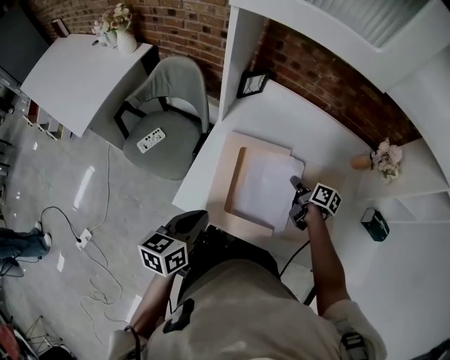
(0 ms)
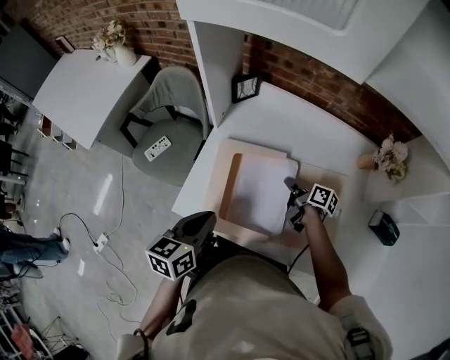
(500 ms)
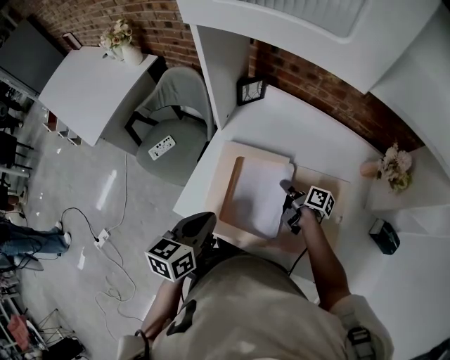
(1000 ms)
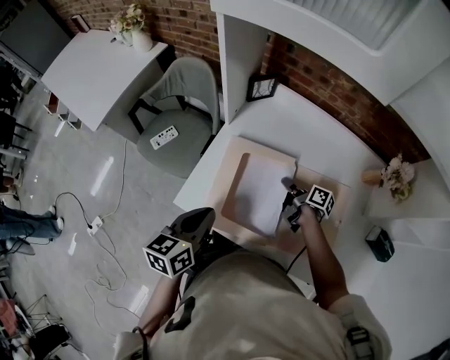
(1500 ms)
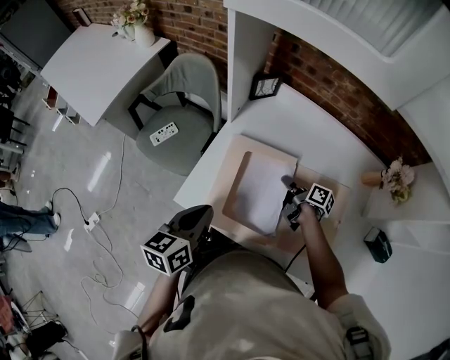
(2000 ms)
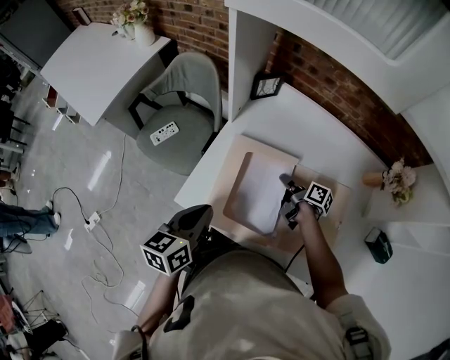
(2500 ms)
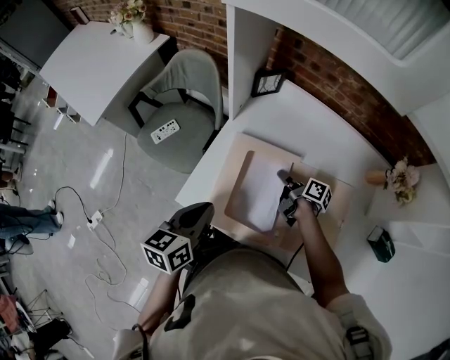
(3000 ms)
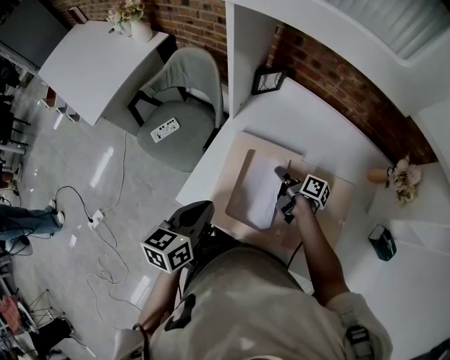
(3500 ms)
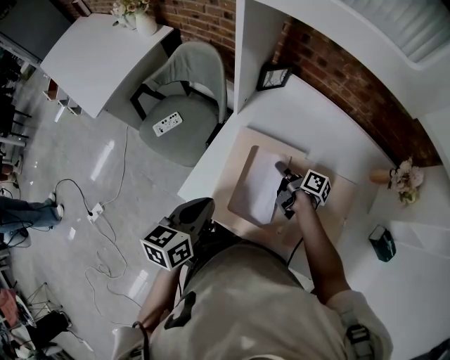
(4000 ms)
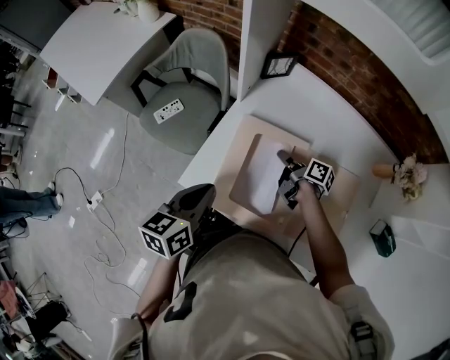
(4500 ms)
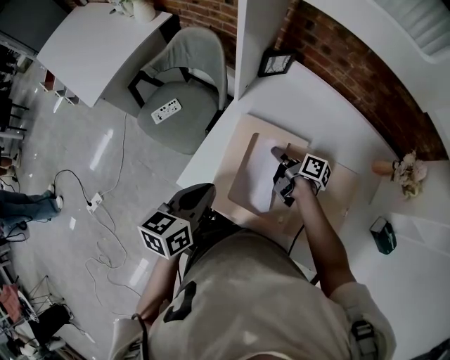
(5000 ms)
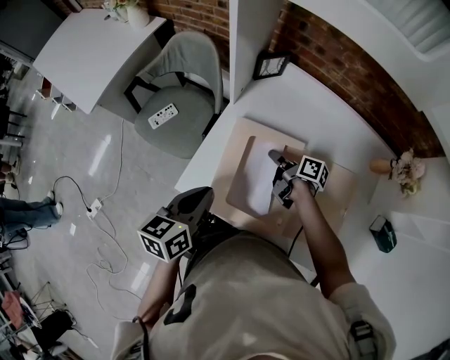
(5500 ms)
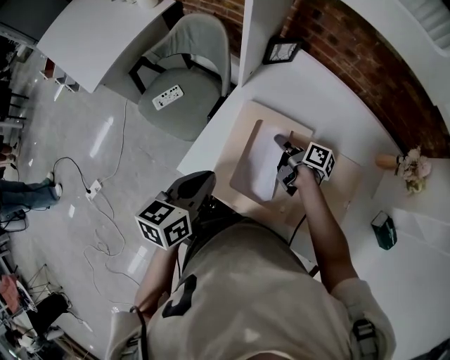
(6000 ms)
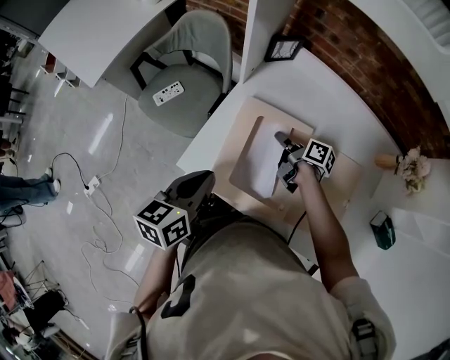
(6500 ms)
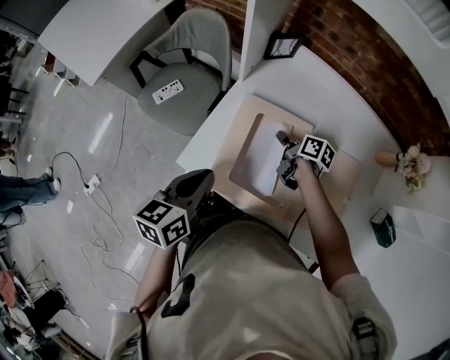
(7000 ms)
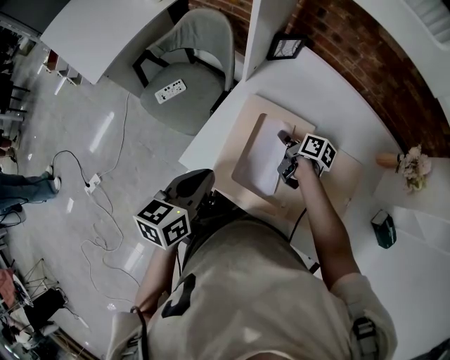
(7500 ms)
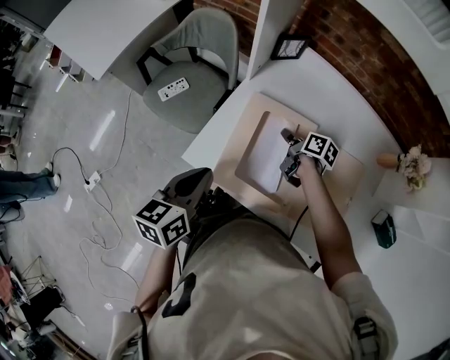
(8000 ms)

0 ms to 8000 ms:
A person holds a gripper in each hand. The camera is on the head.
0 ms to 2000 ms: The right gripper heads to the left, covering roughly 5 cm.
2000 ms to 4000 ms: The right gripper moves roughly 5 cm.
4000 ms to 8000 ms: The grippers move only a little.

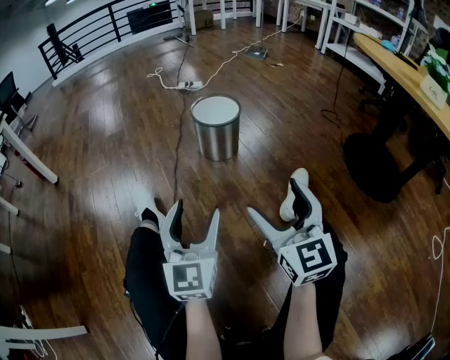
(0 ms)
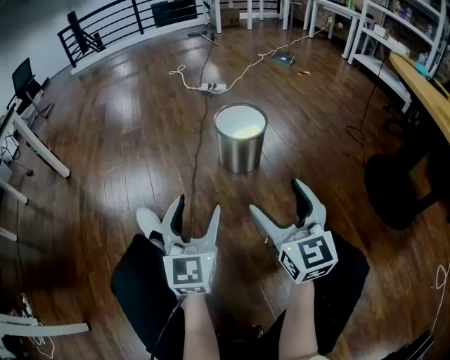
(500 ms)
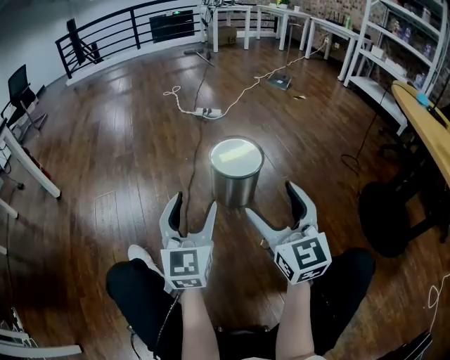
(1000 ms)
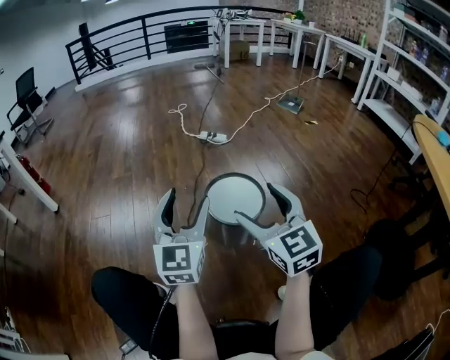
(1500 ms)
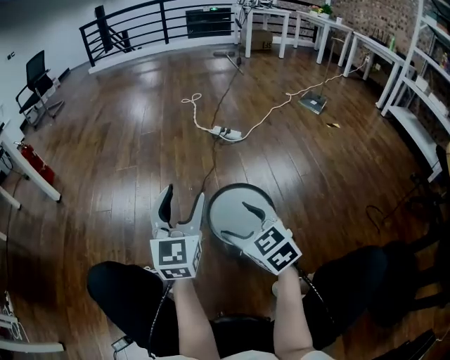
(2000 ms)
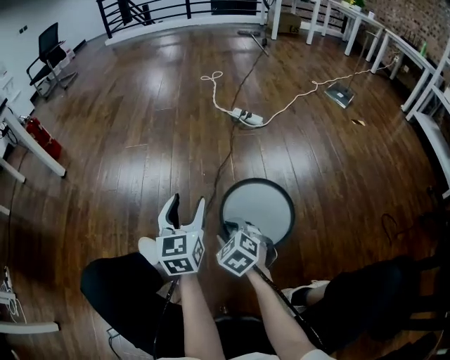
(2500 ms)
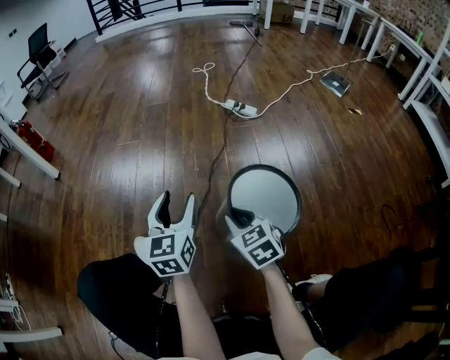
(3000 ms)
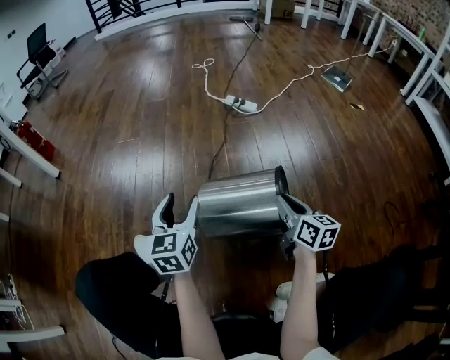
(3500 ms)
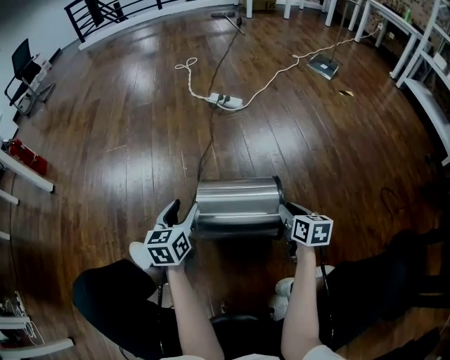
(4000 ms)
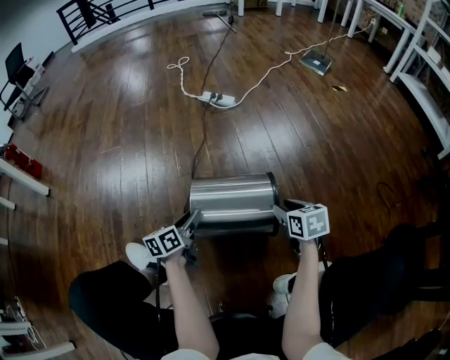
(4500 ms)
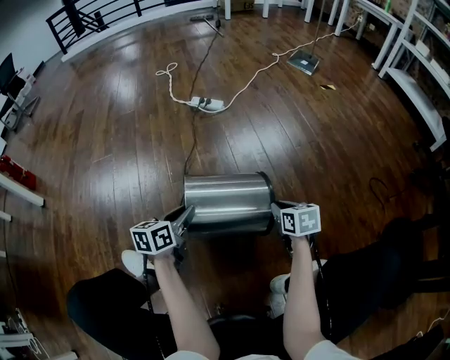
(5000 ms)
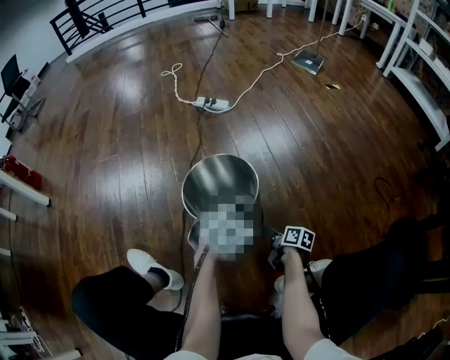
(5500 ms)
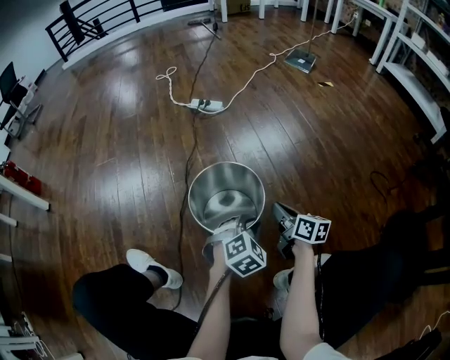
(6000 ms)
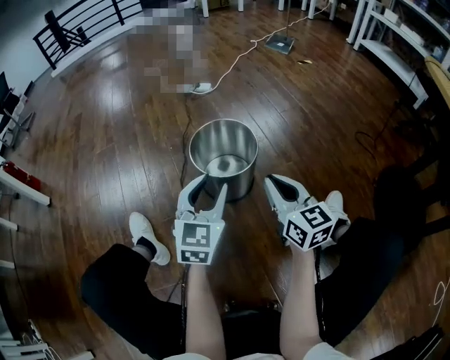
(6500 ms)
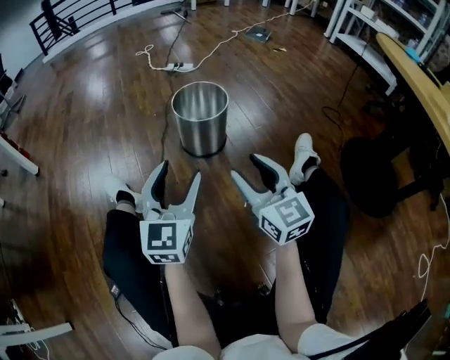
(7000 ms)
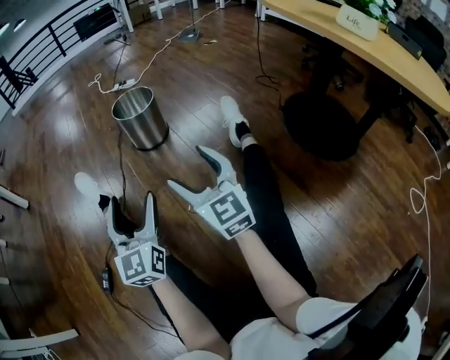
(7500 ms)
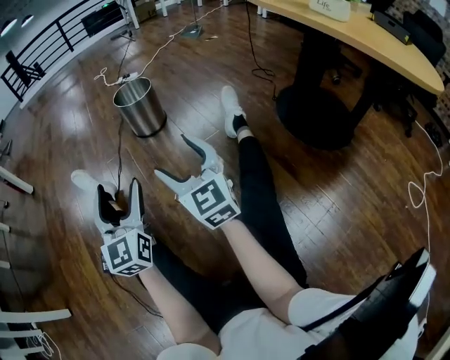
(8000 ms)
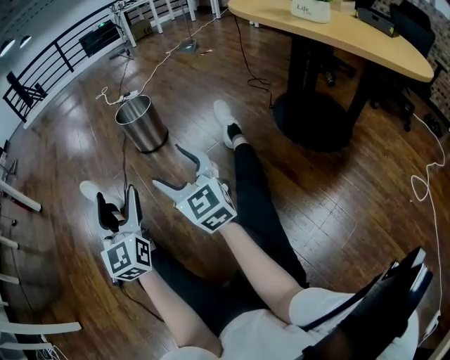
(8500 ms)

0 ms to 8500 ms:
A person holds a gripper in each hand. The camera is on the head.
0 ms to 2000 ms: Both grippers are carried approximately 50 cm. The right gripper turns by roughly 50 degrees.
2000 ms to 4000 ms: The left gripper goes roughly 20 cm downward, and rotates roughly 30 degrees, while the right gripper moves to the right and downward, some 30 cm, rotates around the line of its fingers by some 50 degrees, clockwise from behind, and closes.
4000 ms to 6500 ms: The left gripper is displaced backward, to the right and upward by roughly 20 cm, and changes its angle by about 40 degrees; the right gripper heads backward and upward, covering some 25 cm, and turns by about 30 degrees.
6500 ms to 8500 ms: Both grippers are carried backward, approximately 50 cm. The left gripper rotates some 30 degrees, and opens up, while the right gripper rotates roughly 30 degrees, and opens.

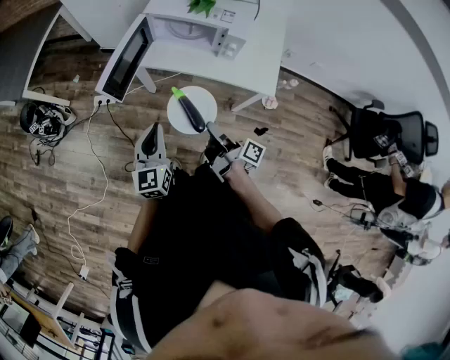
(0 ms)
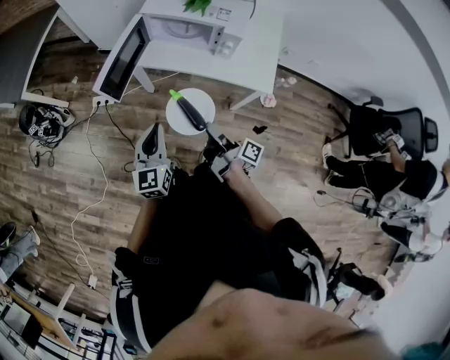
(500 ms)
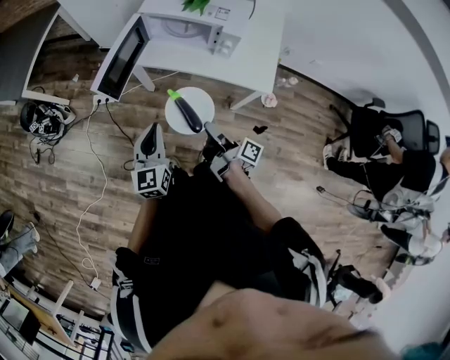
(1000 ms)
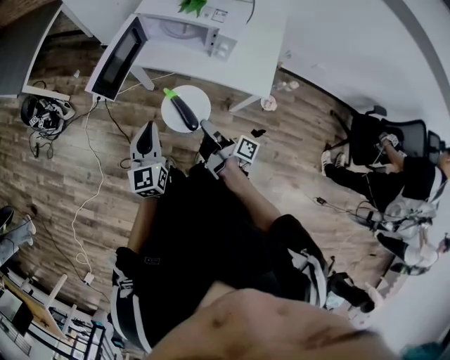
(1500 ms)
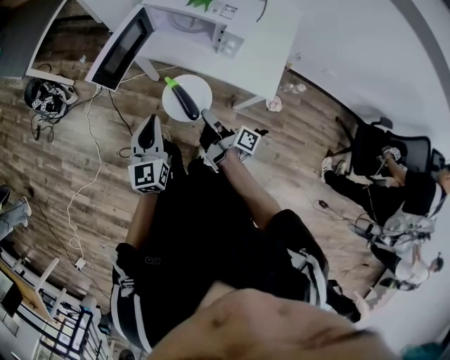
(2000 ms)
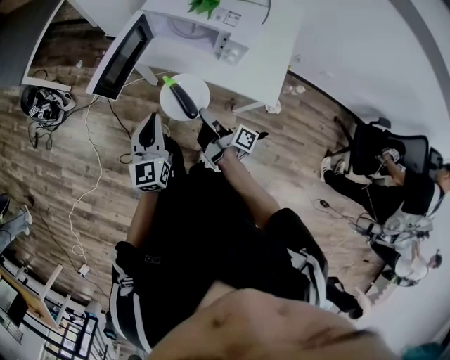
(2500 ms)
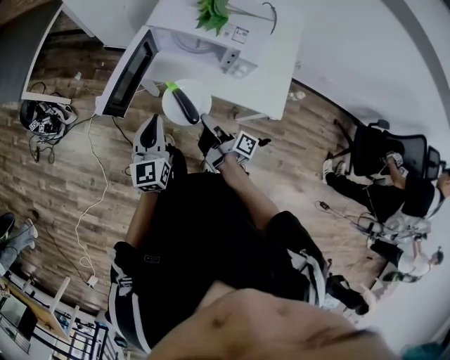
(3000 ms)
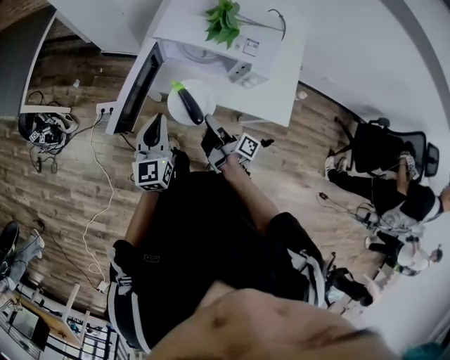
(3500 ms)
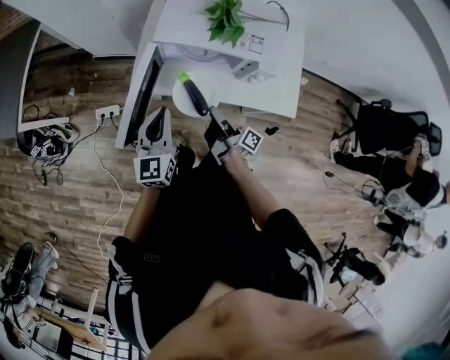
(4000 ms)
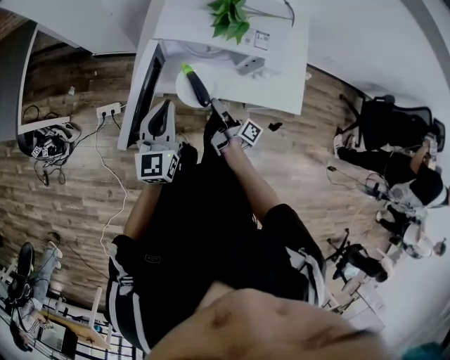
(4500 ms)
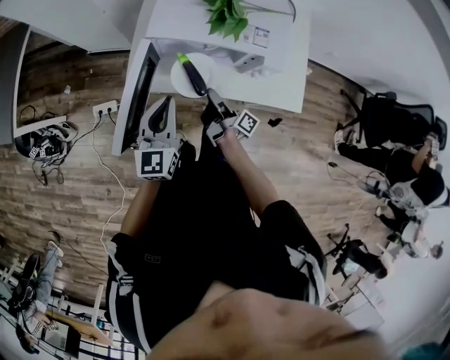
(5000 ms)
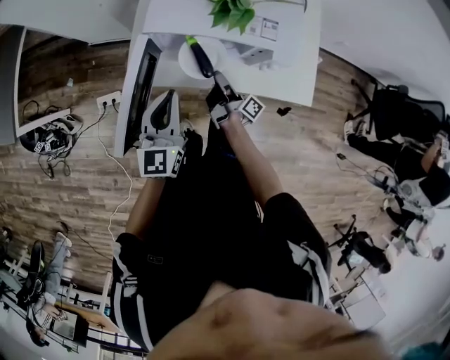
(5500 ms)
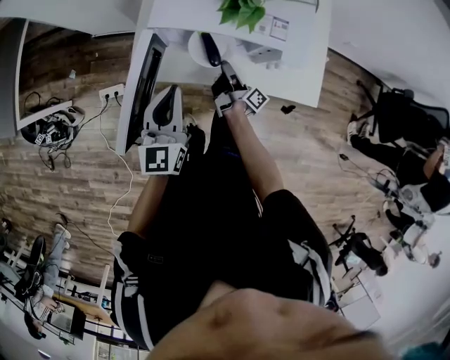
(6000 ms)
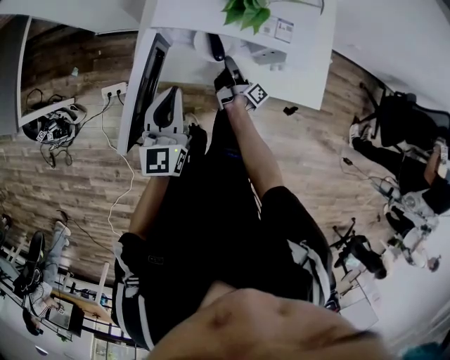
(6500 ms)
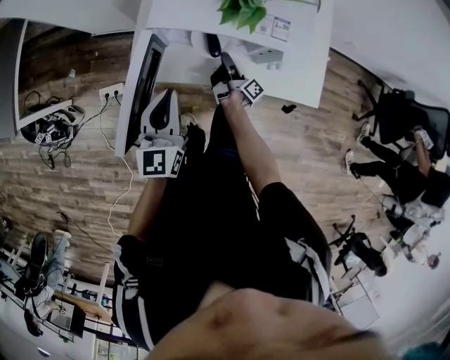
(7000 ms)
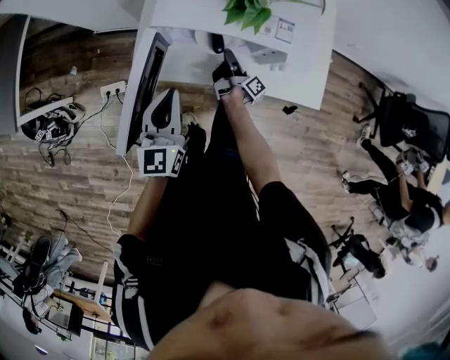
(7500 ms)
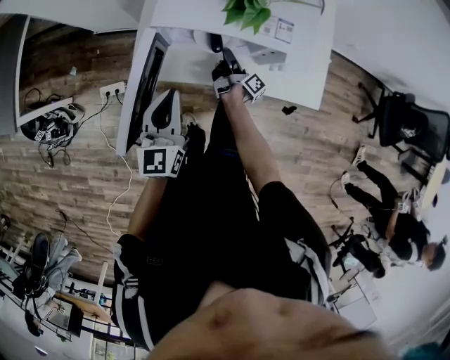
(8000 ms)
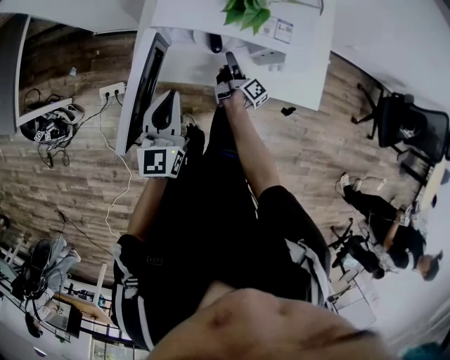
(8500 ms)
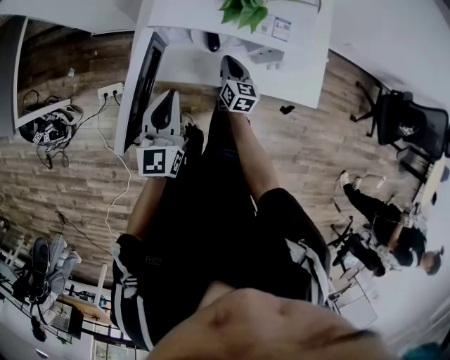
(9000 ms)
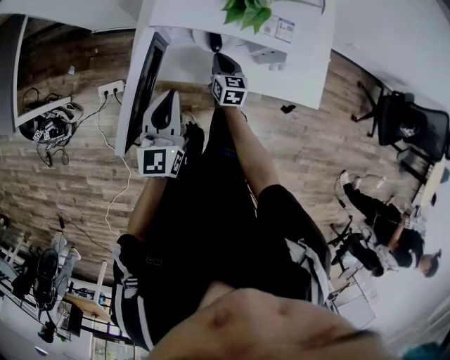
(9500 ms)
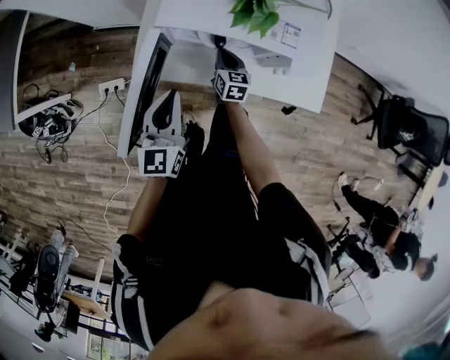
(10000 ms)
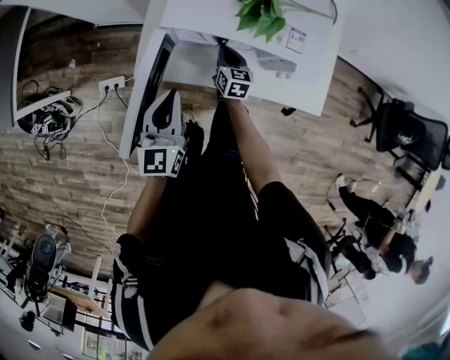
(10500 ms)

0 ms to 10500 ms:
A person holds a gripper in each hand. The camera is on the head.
0 ms to 2000 ms: The left gripper goes about 5 cm to the right. The right gripper changes place by about 5 cm.
2000 ms to 4000 ms: The grippers both shift forward by some 20 cm.
4000 ms to 6500 ms: The right gripper moves forward and downward, roughly 20 cm. The left gripper heads forward, covering roughly 5 cm.
6500 ms to 8500 ms: The right gripper opens up.
8500 ms to 10500 ms: The right gripper travels to the left by approximately 5 cm, rolls counterclockwise, seen from behind, by about 60 degrees, and closes its fingers.
